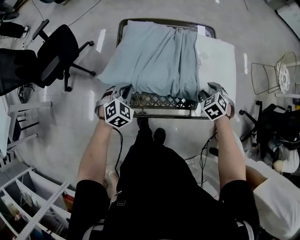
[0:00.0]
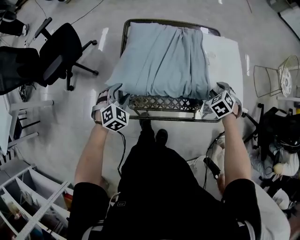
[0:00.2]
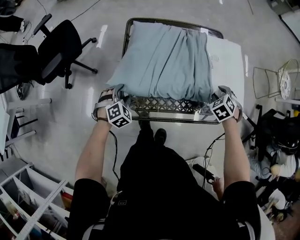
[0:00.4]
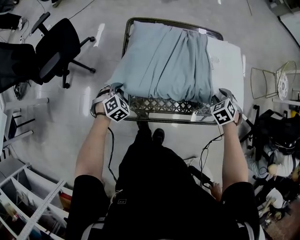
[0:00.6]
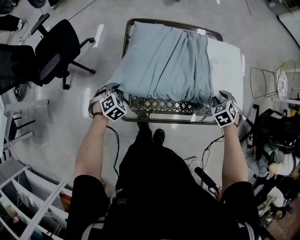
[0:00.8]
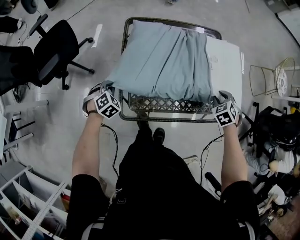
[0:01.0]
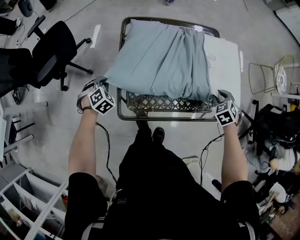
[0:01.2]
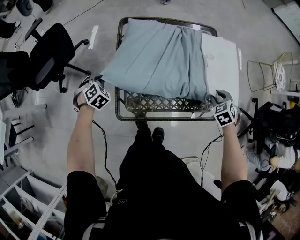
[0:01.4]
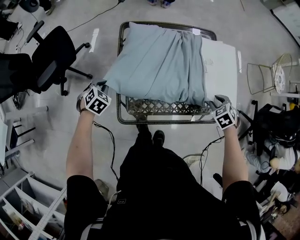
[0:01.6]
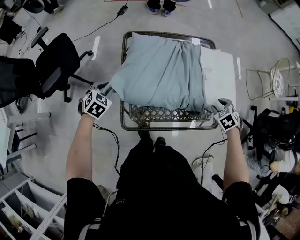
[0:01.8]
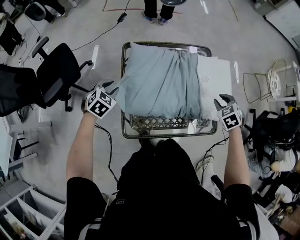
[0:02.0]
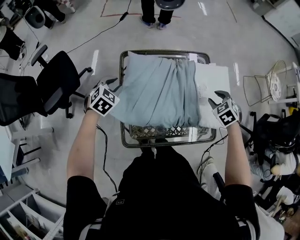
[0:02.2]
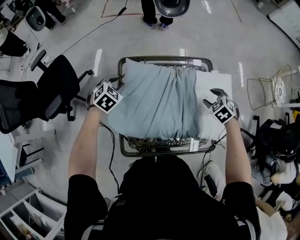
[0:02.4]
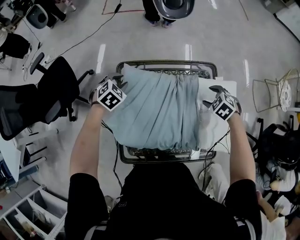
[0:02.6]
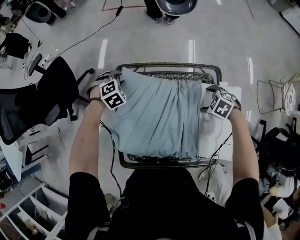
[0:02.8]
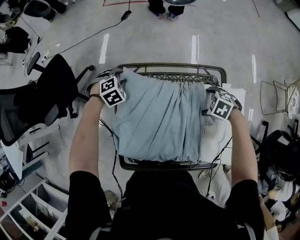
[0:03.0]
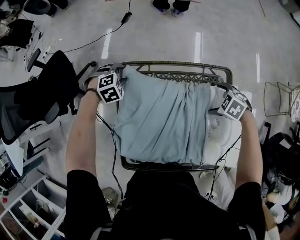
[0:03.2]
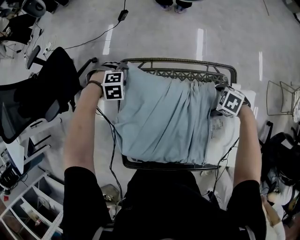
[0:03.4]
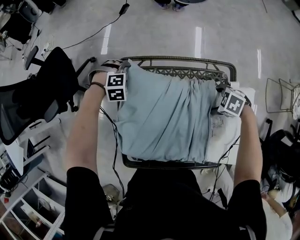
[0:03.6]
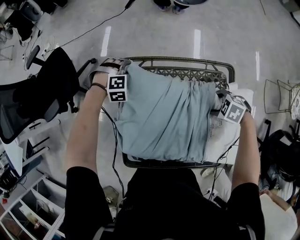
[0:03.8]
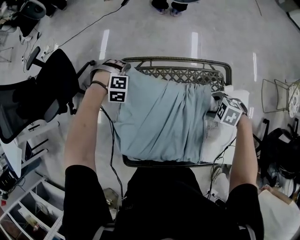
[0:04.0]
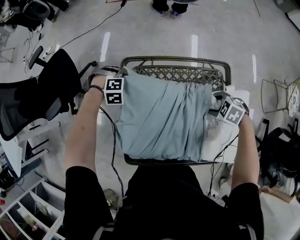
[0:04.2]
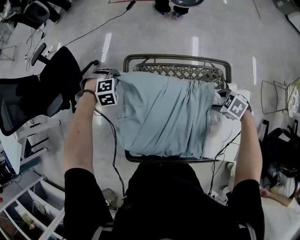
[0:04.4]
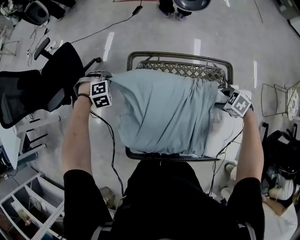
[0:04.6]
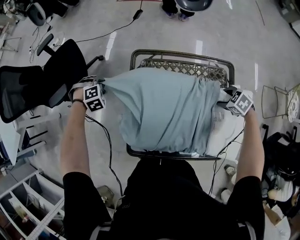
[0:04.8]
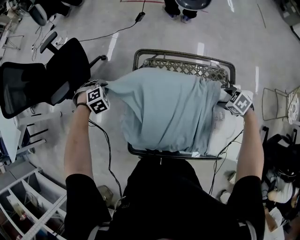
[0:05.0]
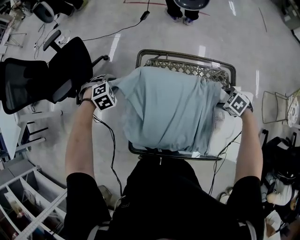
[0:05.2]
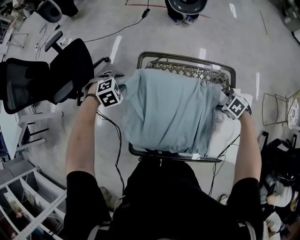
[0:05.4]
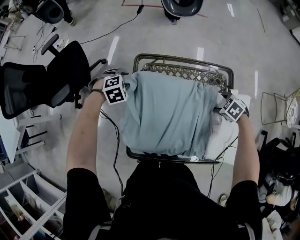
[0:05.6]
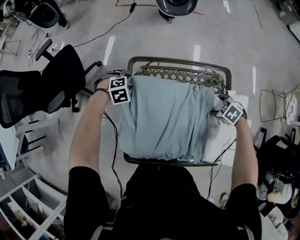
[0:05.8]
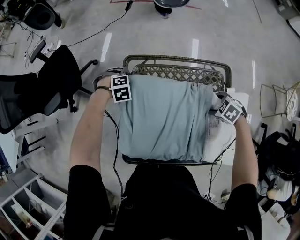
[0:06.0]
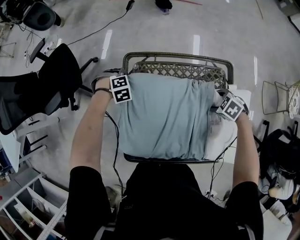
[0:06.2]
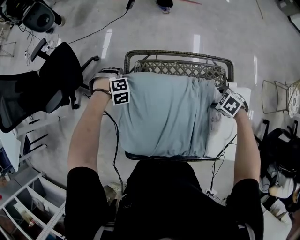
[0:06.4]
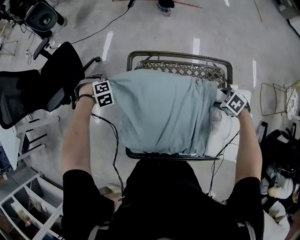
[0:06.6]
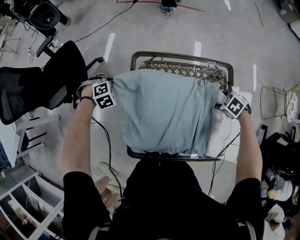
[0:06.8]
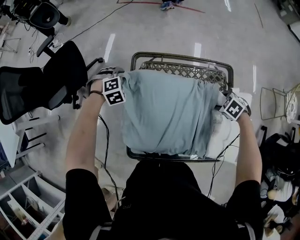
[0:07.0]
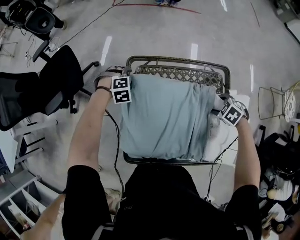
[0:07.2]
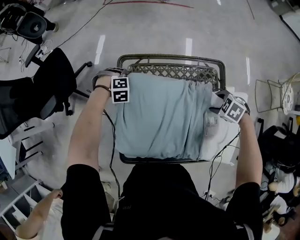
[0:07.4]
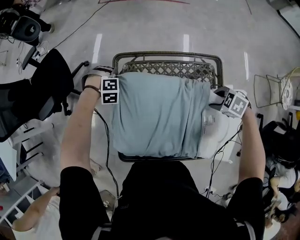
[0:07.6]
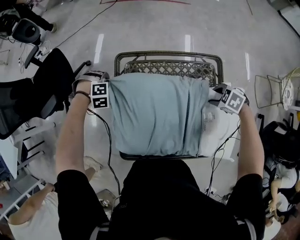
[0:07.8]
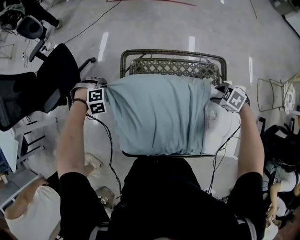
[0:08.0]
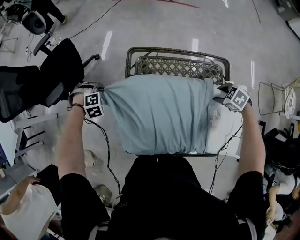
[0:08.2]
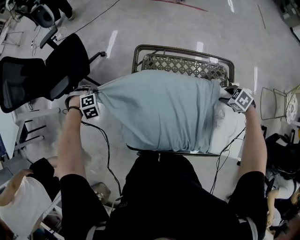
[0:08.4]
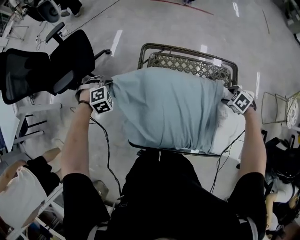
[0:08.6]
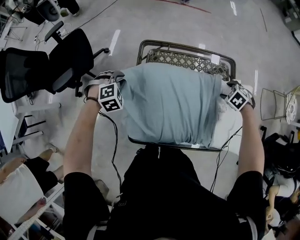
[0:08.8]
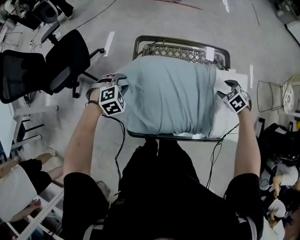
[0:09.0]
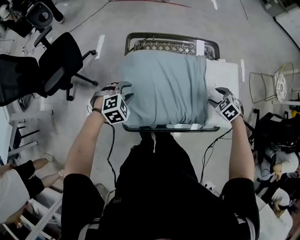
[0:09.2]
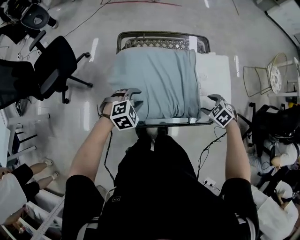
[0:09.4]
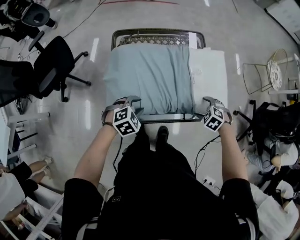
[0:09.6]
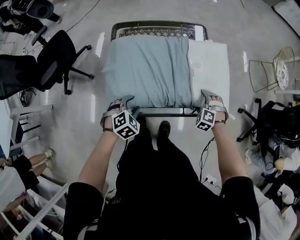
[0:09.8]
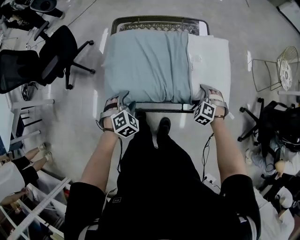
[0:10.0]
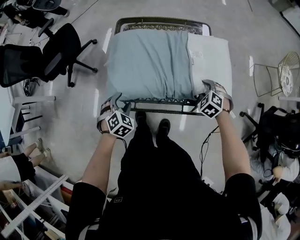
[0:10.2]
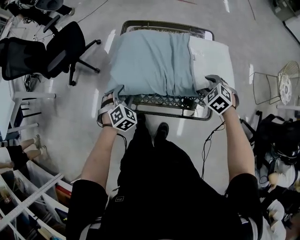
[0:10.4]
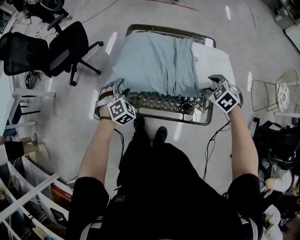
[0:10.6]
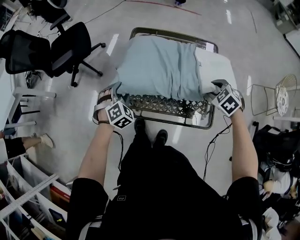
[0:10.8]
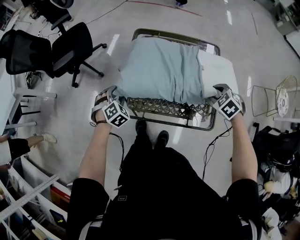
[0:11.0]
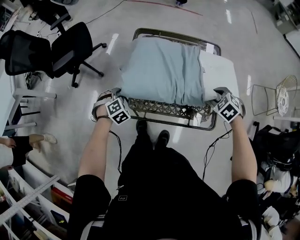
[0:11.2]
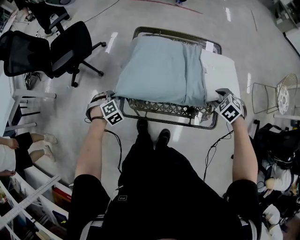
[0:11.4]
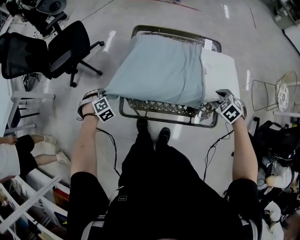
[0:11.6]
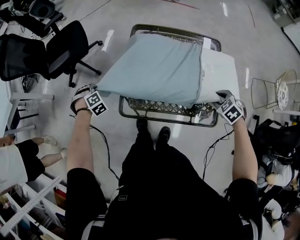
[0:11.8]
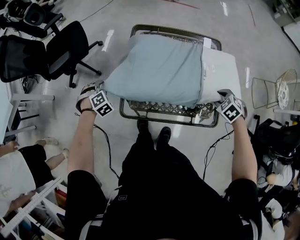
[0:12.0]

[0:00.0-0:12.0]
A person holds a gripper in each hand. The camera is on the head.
0:00.0 to 0:01.6: The left gripper goes some 15 cm to the left, and opens and closes again.
0:01.6 to 0:03.0: The left gripper goes upward and returns, approximately 10 cm each way, swivels about 20 degrees, and opens up; the right gripper moves some 10 cm upward and comes back, turns by roughly 40 degrees, and opens.
0:03.0 to 0:04.4: The left gripper ends up some 10 cm from where it was, and closes up; the right gripper closes its fingers.
0:04.4 to 0:06.0: The left gripper opens.
0:06.0 to 0:07.6: The right gripper changes place by roughly 5 cm; the left gripper closes.
0:07.6 to 0:09.0: The right gripper turns by approximately 30 degrees; the left gripper ends up some 20 cm from where it was, turns by some 30 degrees, and opens.
0:09.0 to 0:10.4: The right gripper reaches approximately 10 cm downward, then returns; the left gripper shifts by roughly 20 cm, turns by approximately 30 degrees, and opens up.
0:10.4 to 0:12.0: The left gripper goes about 20 cm to the left and forward, and closes up.

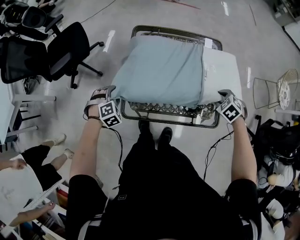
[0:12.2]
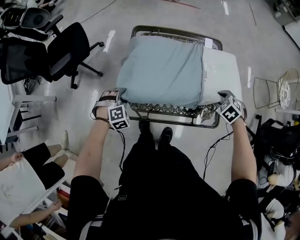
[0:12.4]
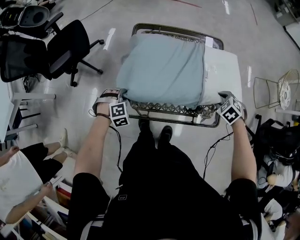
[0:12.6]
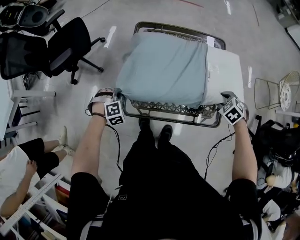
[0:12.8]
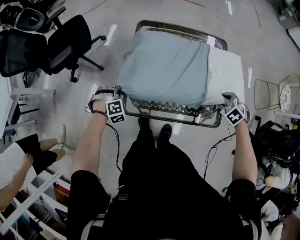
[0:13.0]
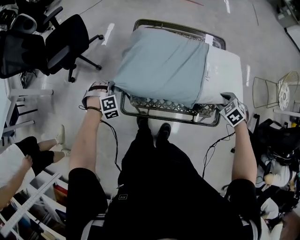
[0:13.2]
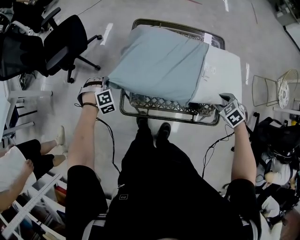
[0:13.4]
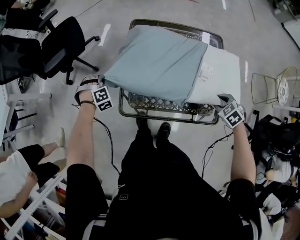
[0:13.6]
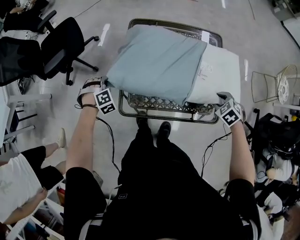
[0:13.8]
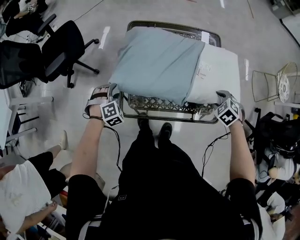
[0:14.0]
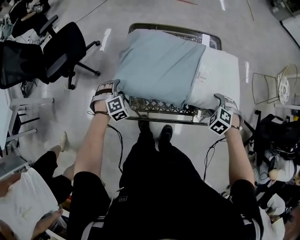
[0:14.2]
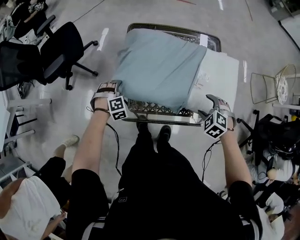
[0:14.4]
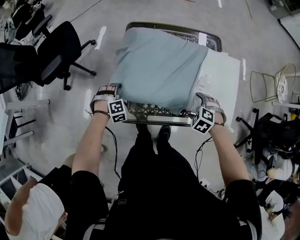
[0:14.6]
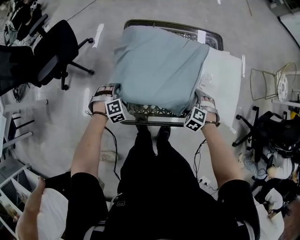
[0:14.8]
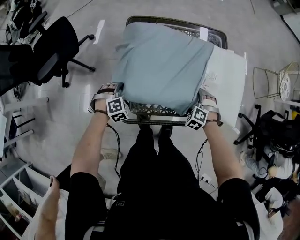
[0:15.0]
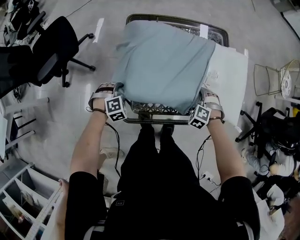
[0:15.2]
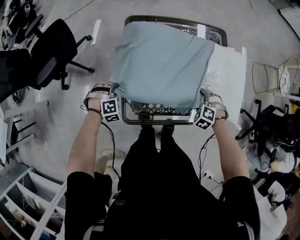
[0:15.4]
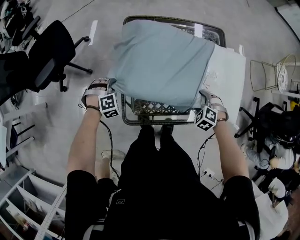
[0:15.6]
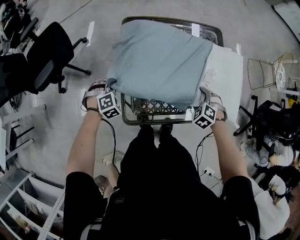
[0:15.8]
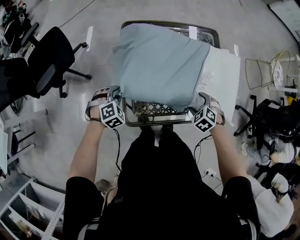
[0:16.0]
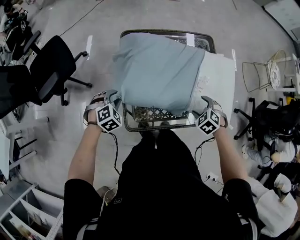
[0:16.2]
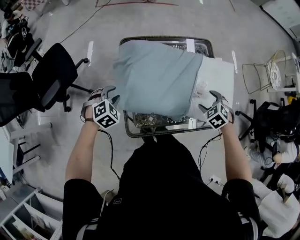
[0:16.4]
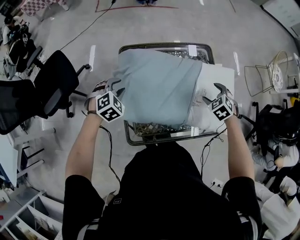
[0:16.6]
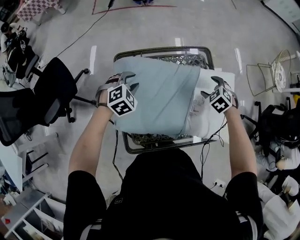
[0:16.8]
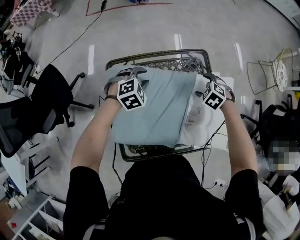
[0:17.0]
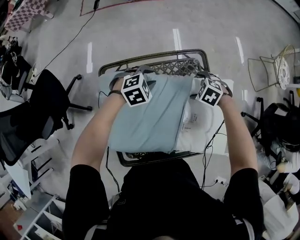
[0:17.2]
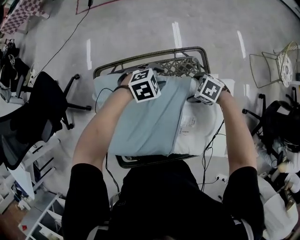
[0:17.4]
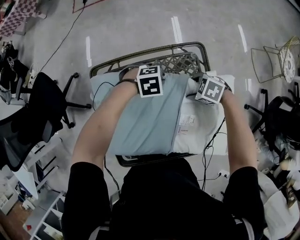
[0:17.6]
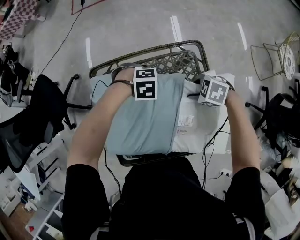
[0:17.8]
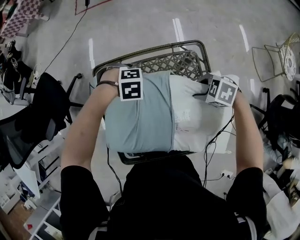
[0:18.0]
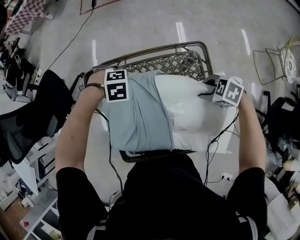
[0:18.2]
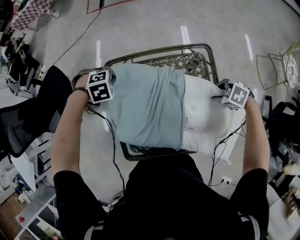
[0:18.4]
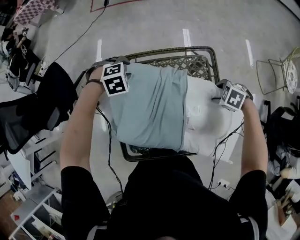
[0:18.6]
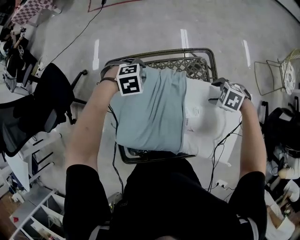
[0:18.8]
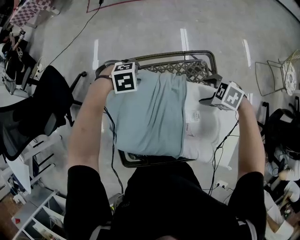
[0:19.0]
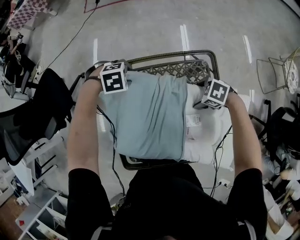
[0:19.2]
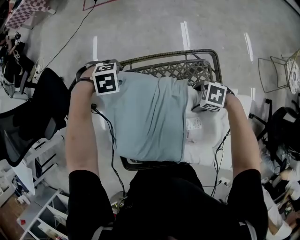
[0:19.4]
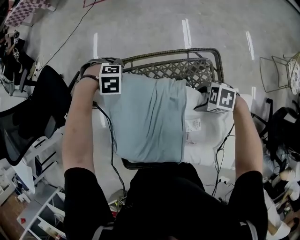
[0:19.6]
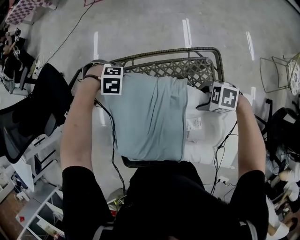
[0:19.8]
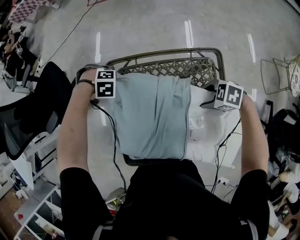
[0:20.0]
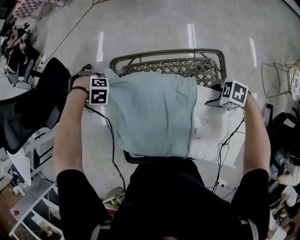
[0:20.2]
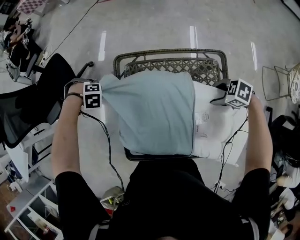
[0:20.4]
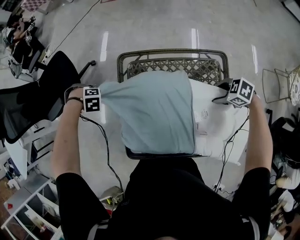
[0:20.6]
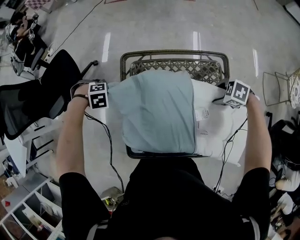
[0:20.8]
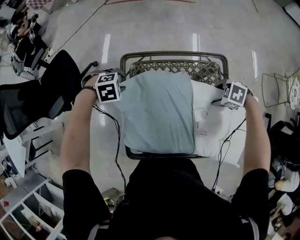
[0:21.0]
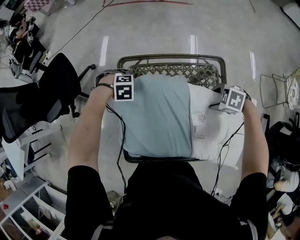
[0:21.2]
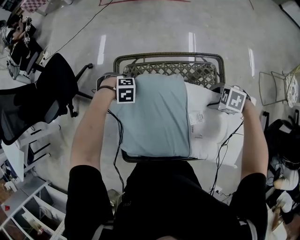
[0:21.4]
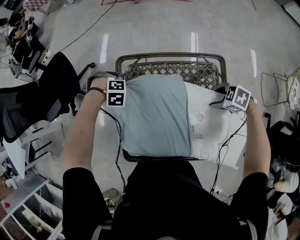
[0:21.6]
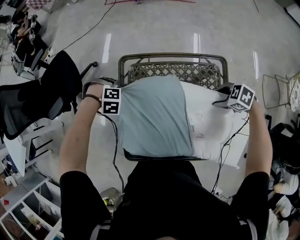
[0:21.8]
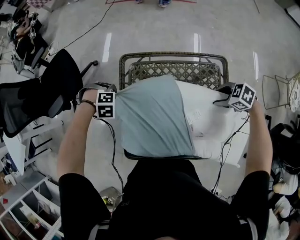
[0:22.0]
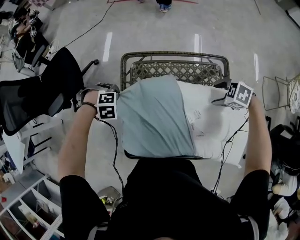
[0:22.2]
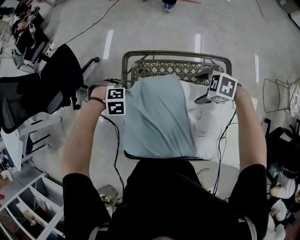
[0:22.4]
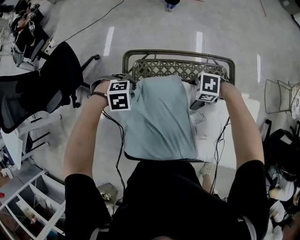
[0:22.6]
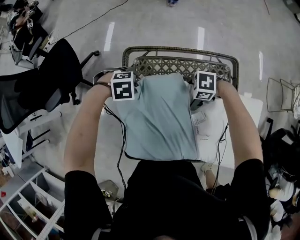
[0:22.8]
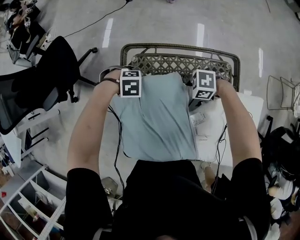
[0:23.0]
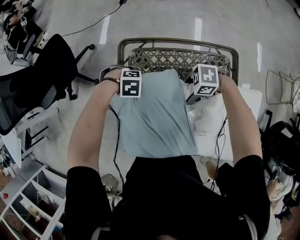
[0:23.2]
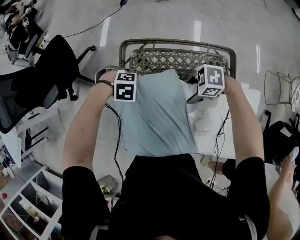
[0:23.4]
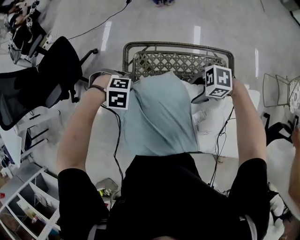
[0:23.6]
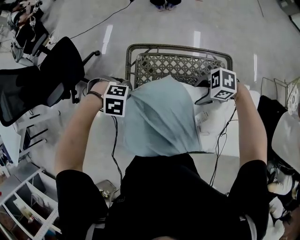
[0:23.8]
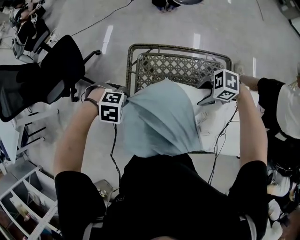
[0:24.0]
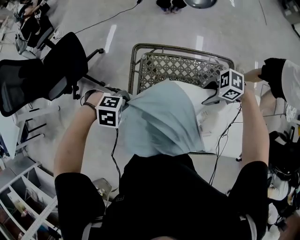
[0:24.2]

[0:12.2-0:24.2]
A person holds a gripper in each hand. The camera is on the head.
0:12.2 to 0:13.8: The left gripper goes some 5 cm forward, and closes.
0:13.8 to 0:15.2: The right gripper is displaced downward by roughly 10 cm, rotates approximately 20 degrees, and opens, while the left gripper shifts some 5 cm downward, and opens, then closes again.
0:15.2 to 0:16.6: The left gripper is displaced upward and forward by roughly 20 cm, and opens its fingers. Meanwhile the right gripper moves upward, forward and to the right, roughly 20 cm, and swivels some 30 degrees.
0:16.6 to 0:18.2: The left gripper swivels about 50 degrees, and closes its fingers; the right gripper moves roughly 10 cm downward and comes back, rotates roughly 40 degrees, and closes up.
0:18.2 to 0:19.8: The right gripper shifts by approximately 5 cm, and opens, then closes once more. Meanwhile the left gripper moves downward, some 5 cm, and opens and closes again.
0:19.8 to 0:21.2: The left gripper opens its fingers.
0:21.2 to 0:22.6: The left gripper closes, then reopens. The right gripper moves roughly 15 cm, and opens its fingers.
0:22.6 to 0:24.2: The right gripper goes approximately 10 cm upward, and closes; the left gripper changes place by roughly 15 cm, and closes up.
